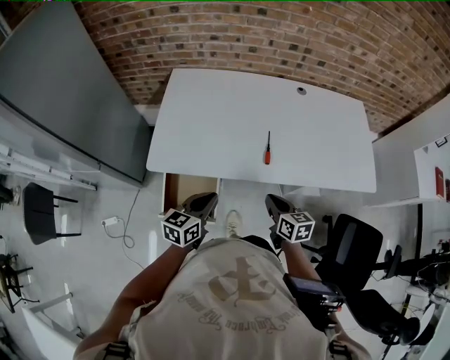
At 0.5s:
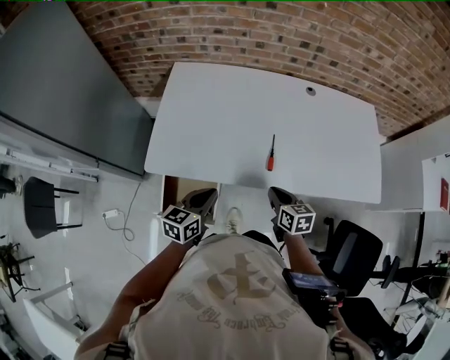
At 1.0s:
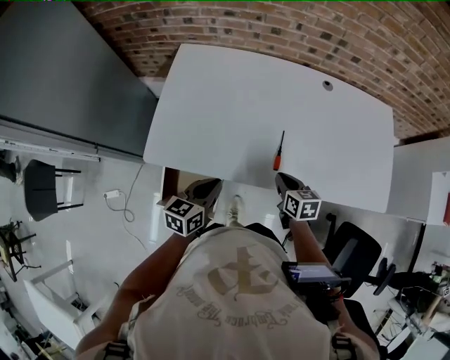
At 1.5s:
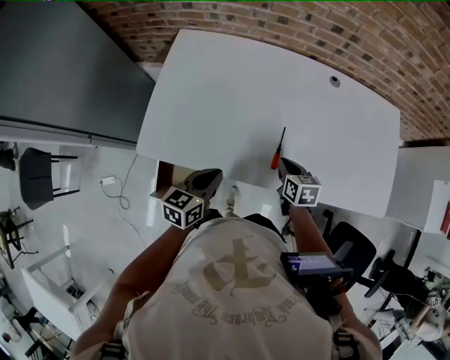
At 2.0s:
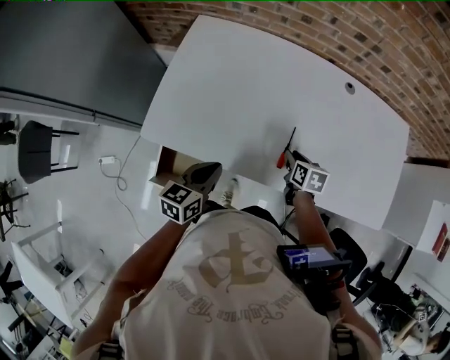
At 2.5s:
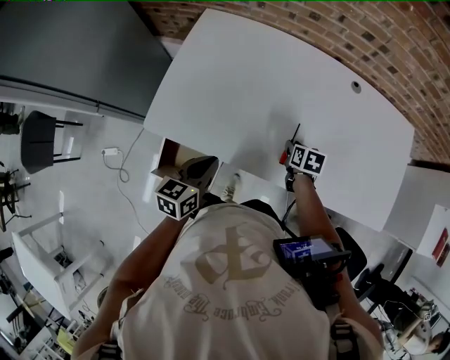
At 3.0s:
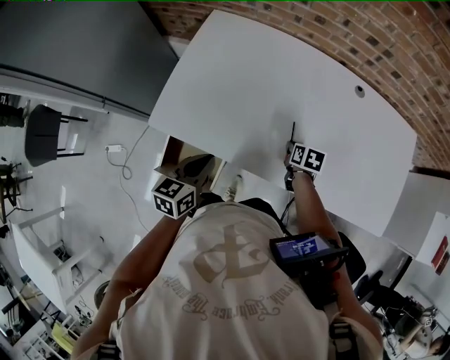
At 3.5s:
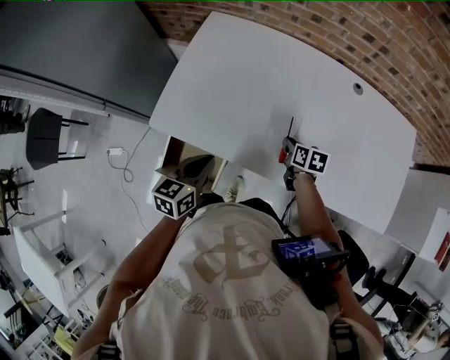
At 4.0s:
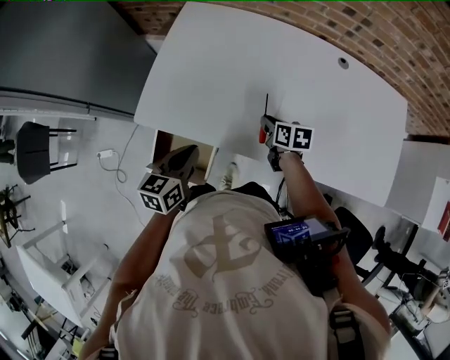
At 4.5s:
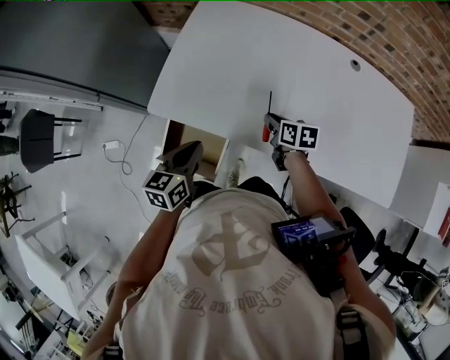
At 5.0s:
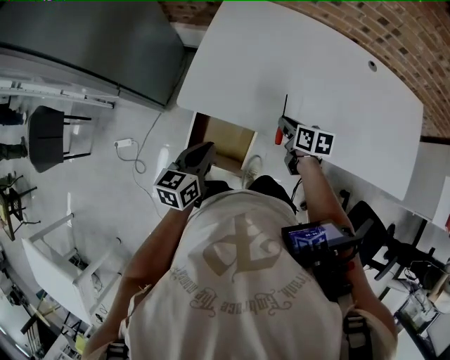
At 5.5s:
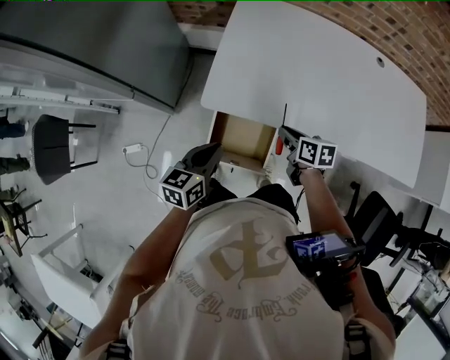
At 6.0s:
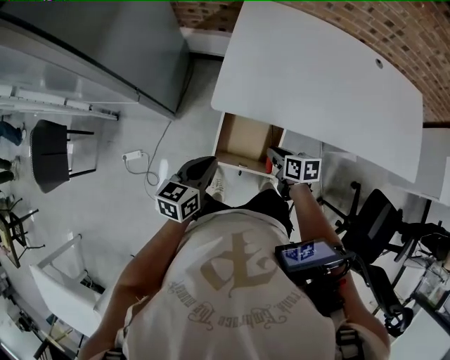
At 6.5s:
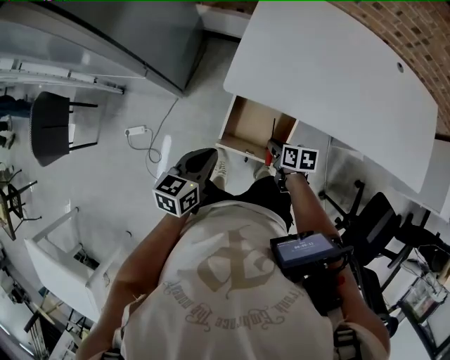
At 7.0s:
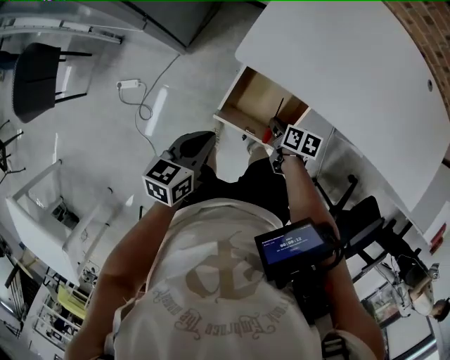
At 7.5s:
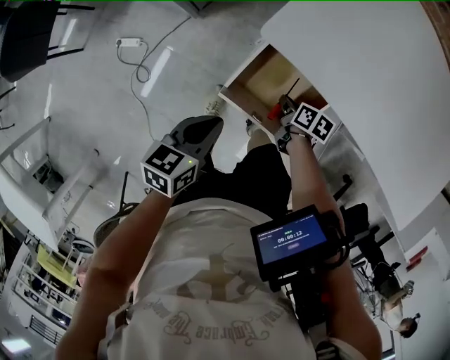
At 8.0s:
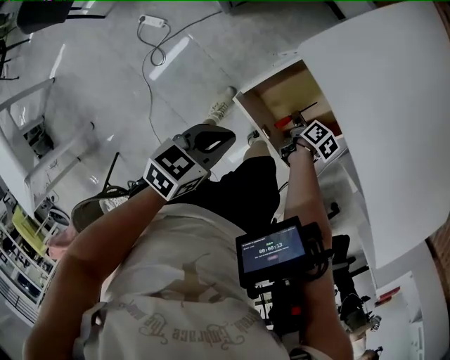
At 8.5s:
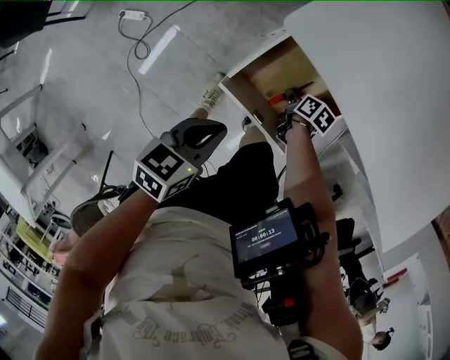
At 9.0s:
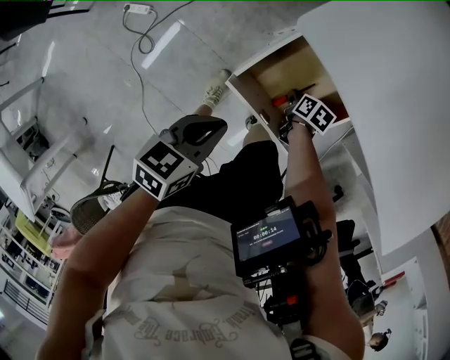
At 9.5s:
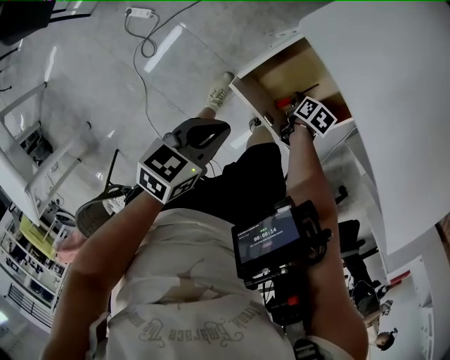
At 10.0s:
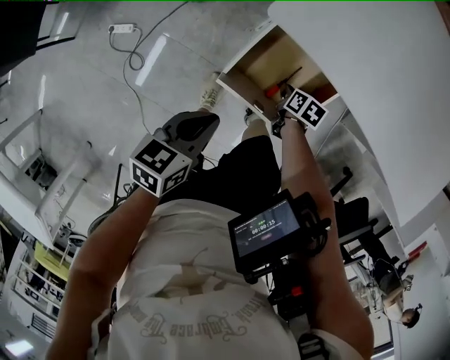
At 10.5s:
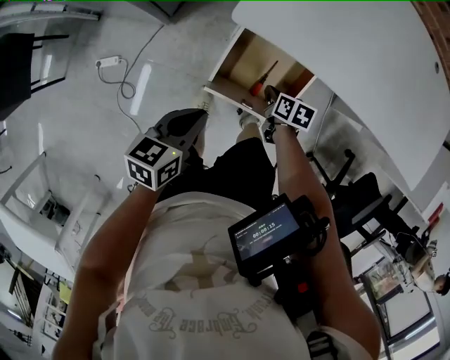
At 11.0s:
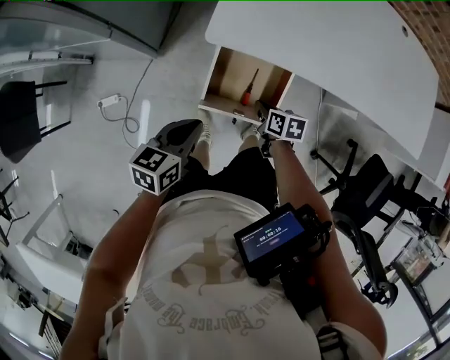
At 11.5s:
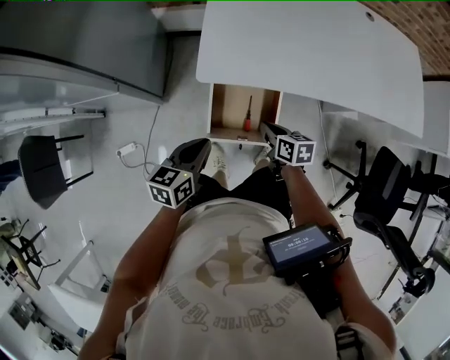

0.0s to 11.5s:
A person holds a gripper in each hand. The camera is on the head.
0.0s to 2.0s: The left gripper shifts approximately 15 cm forward and downward. The right gripper moves forward and downward, some 25 cm, and turns by about 20 degrees.
2.0s to 4.0s: The right gripper is displaced to the left by roughly 10 cm. The left gripper moves about 5 cm.
4.0s to 6.0s: The right gripper is displaced to the left and backward by roughly 35 cm, while the left gripper moves to the left, roughly 25 cm.
6.0s to 7.5s: The right gripper is displaced downward by some 20 cm, while the left gripper heads downward, covering approximately 15 cm, and rotates approximately 20 degrees.
7.5s to 9.5s: The left gripper shifts by about 5 cm. Meanwhile the right gripper moves downward, roughly 10 cm.
9.5s to 11.5s: The right gripper travels upward by about 30 cm, and turns by roughly 30 degrees; the left gripper moves upward and forward, roughly 15 cm, and changes its angle by about 20 degrees.

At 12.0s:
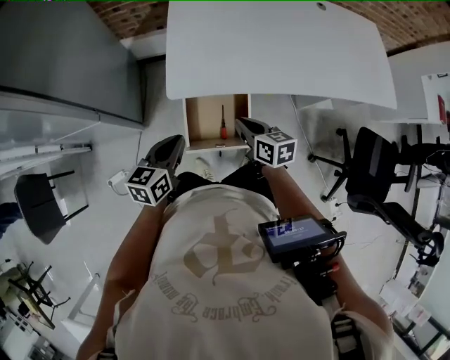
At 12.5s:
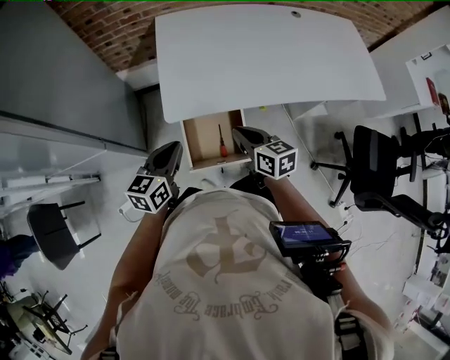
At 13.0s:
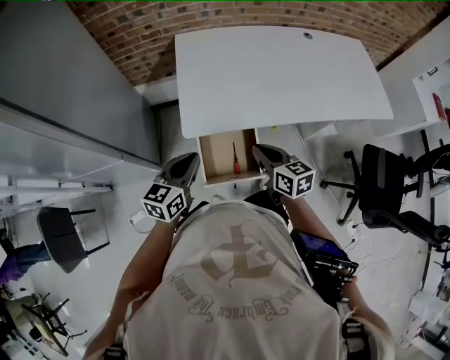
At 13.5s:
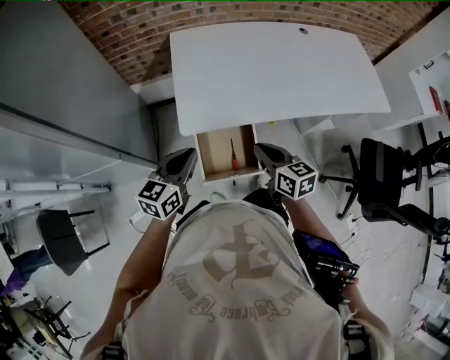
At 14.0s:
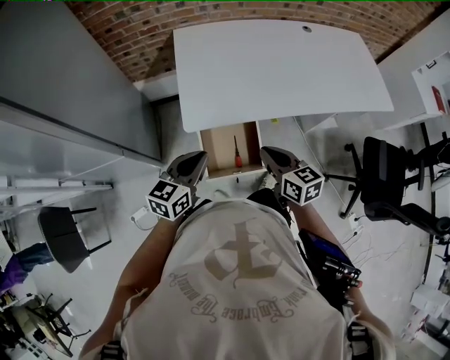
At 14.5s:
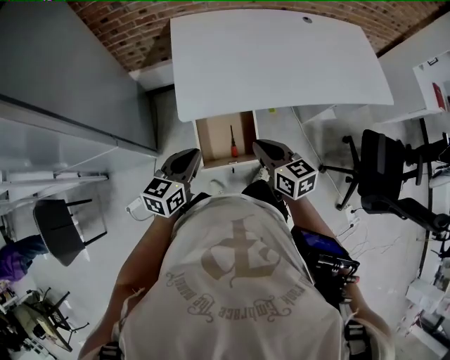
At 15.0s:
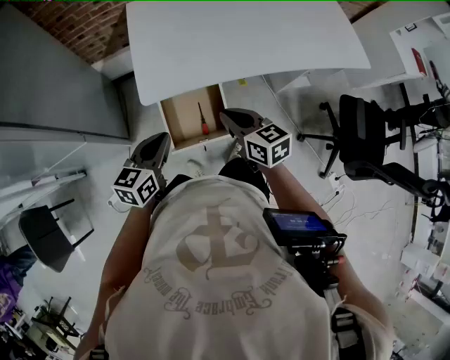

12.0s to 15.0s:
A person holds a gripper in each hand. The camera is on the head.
12.0s to 13.5s: Both grippers move upward, some 10 cm.
13.5s to 15.0s: The left gripper travels downward by approximately 5 cm.

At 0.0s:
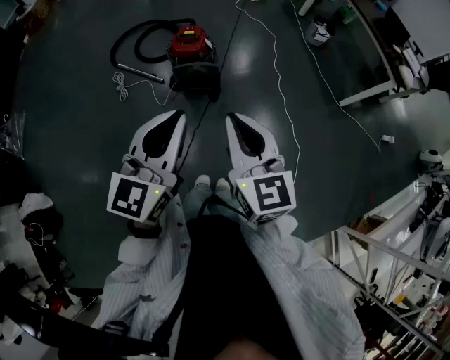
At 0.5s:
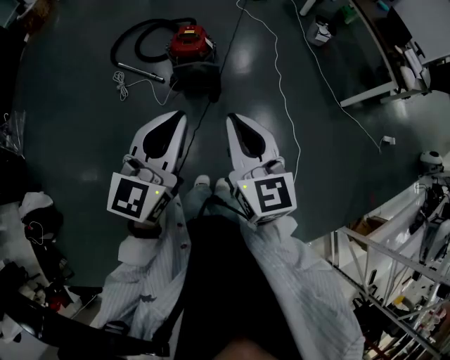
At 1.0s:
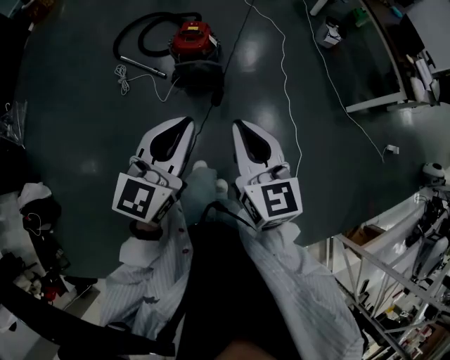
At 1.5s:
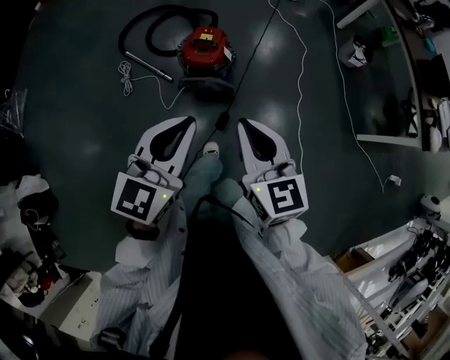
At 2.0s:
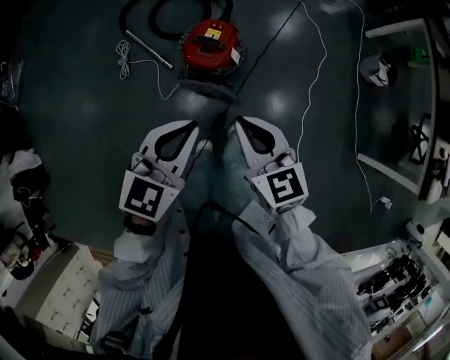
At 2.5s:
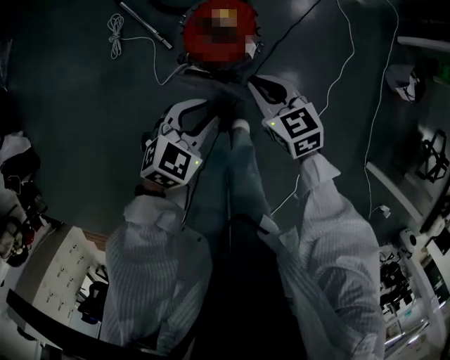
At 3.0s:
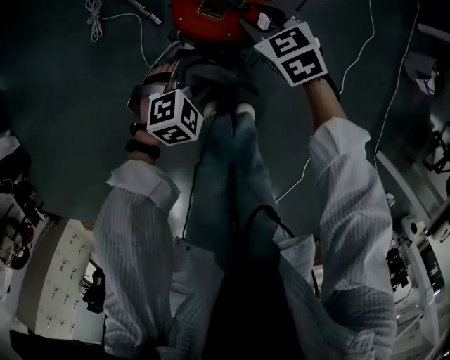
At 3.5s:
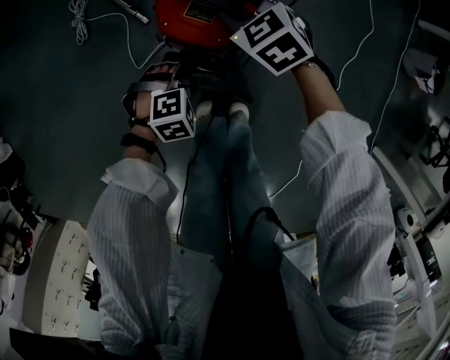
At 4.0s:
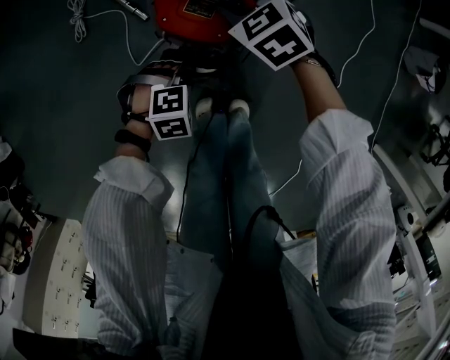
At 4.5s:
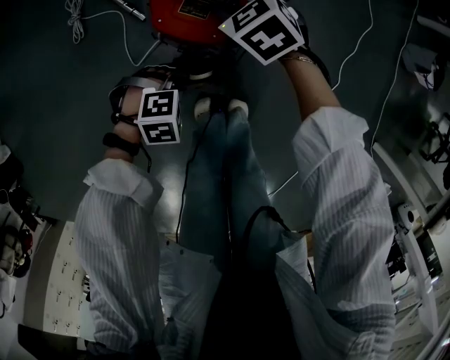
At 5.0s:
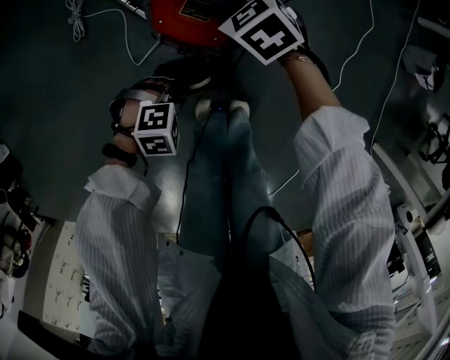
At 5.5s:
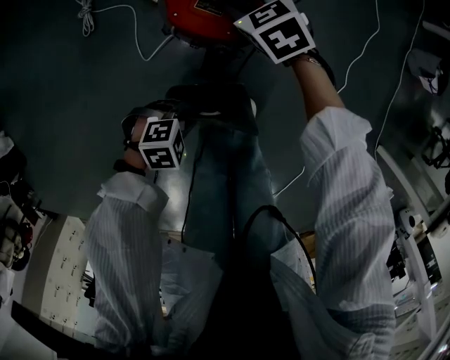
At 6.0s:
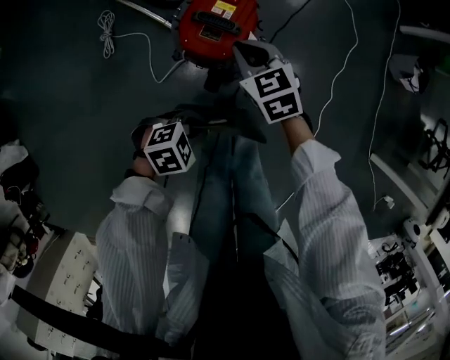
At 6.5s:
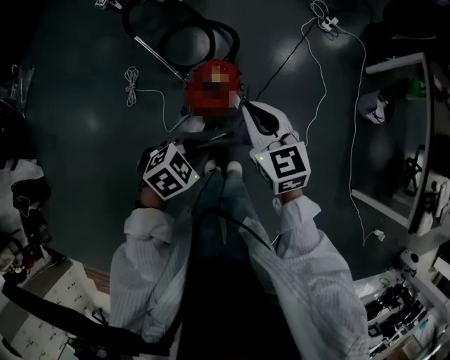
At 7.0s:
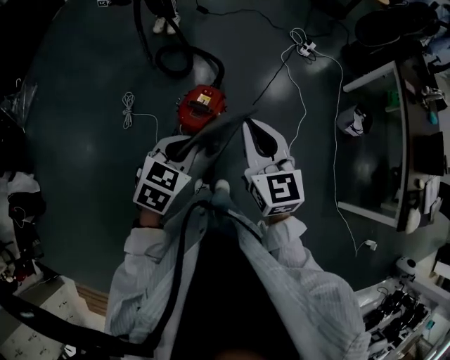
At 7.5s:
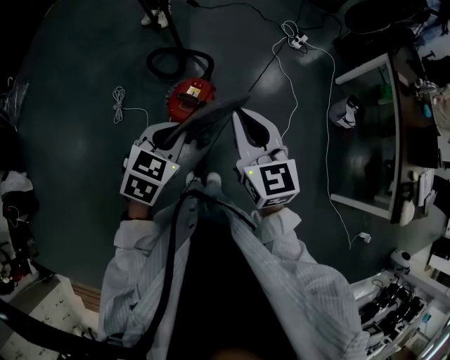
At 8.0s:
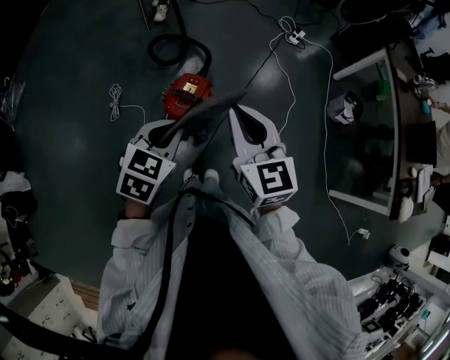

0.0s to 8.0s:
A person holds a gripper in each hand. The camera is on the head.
0.0s to 2.0s: The pair of grippers is taken forward, approximately 40 cm. The grippers both shift downward by some 20 cm. The left gripper turns by some 30 degrees. Meanwhile the right gripper turns by roughly 30 degrees.
2.0s to 4.0s: The two grippers go about 50 cm downward. The right gripper rotates some 40 degrees, and opens, while the left gripper tips its fingers downward by approximately 50 degrees, and opens, then closes again.
4.0s to 6.0s: The grippers both shift upward by approximately 15 cm. The right gripper turns by about 20 degrees, and closes. Meanwhile the left gripper swivels about 20 degrees.
6.0s to 8.0s: The grippers both shift upward by approximately 50 cm. The left gripper swivels approximately 50 degrees. Meanwhile the right gripper turns by roughly 30 degrees.

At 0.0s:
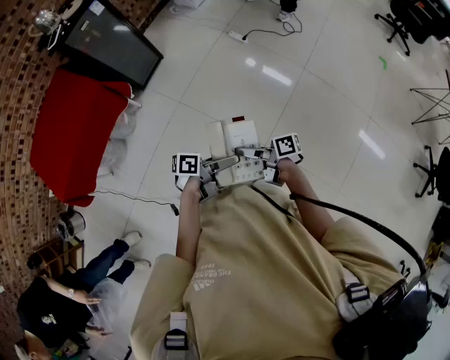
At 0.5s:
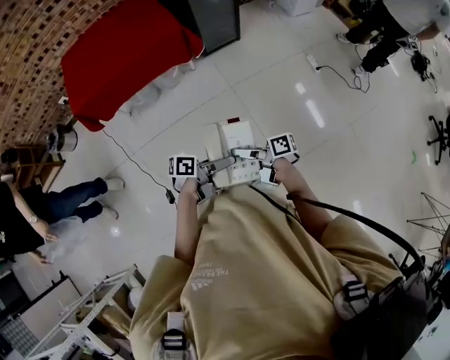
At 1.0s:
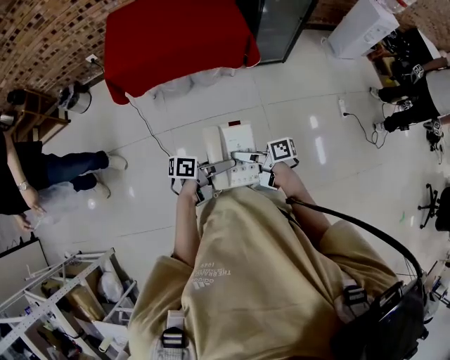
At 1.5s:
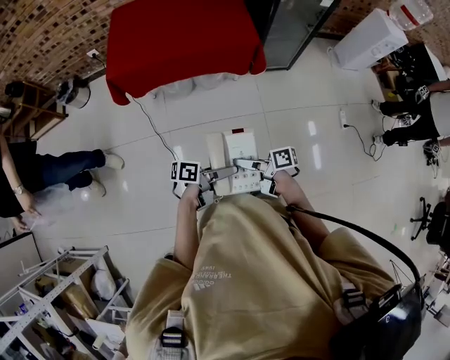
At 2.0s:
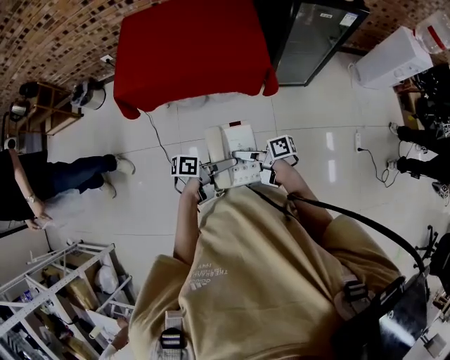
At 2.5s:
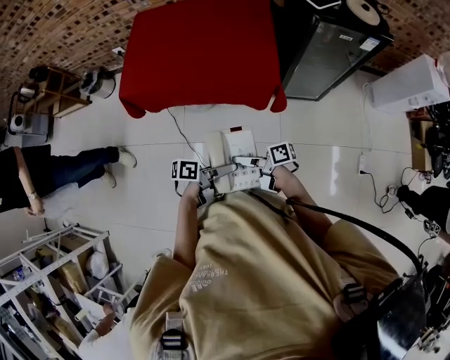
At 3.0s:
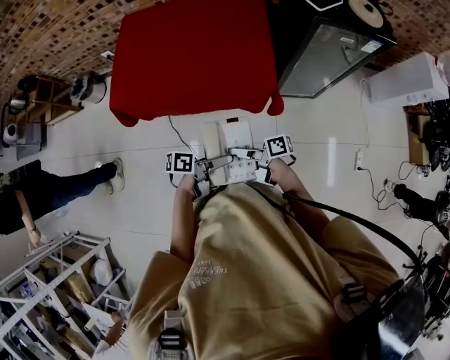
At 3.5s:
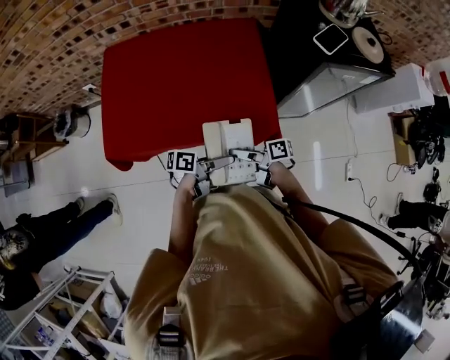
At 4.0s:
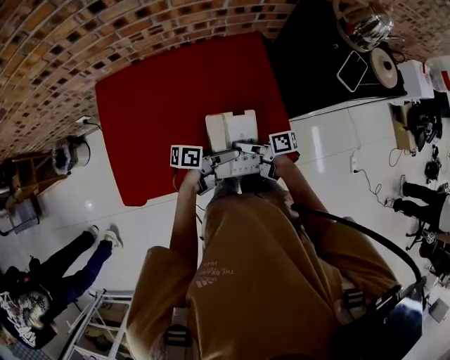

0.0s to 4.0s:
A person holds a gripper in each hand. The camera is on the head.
0.0s to 2.0s: The left gripper moves some 50 cm, and swivels some 50 degrees.
2.0s to 4.0s: The left gripper changes place by some 50 cm.
